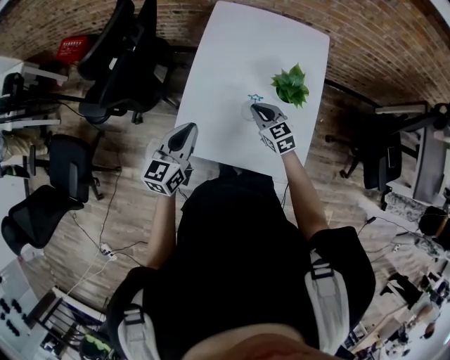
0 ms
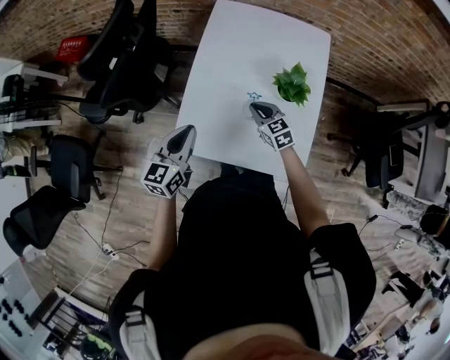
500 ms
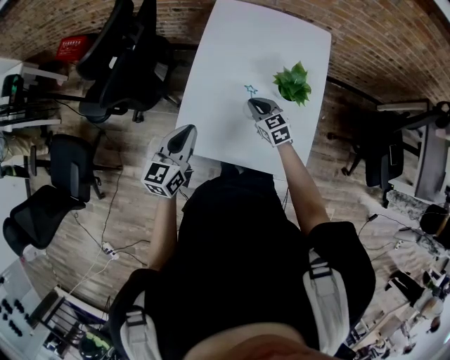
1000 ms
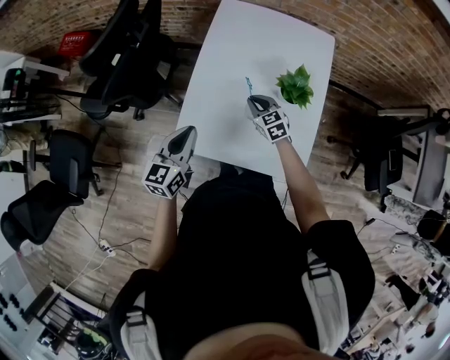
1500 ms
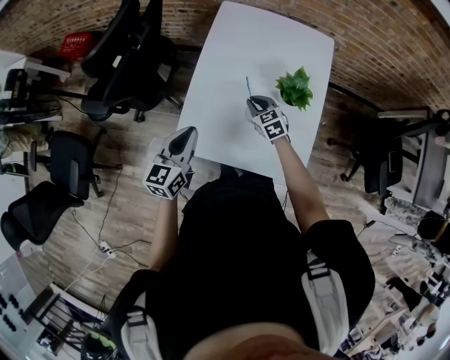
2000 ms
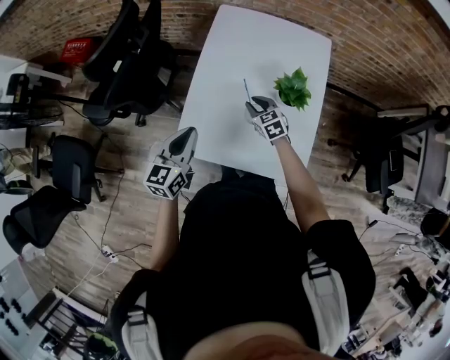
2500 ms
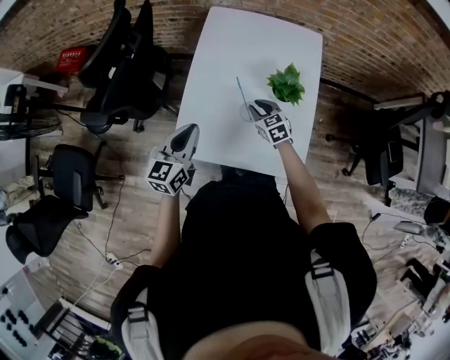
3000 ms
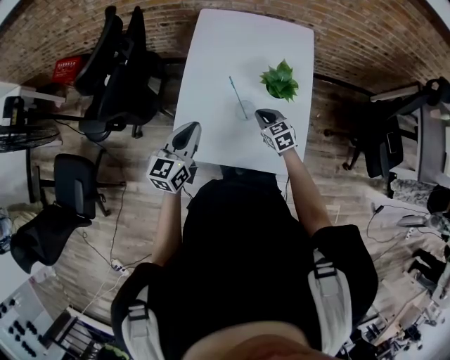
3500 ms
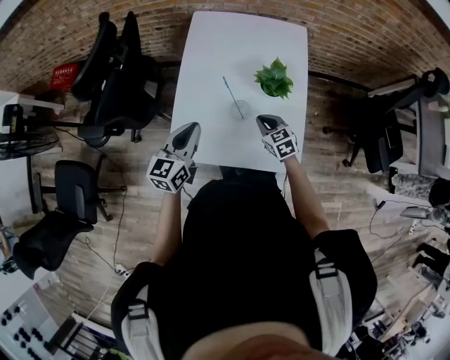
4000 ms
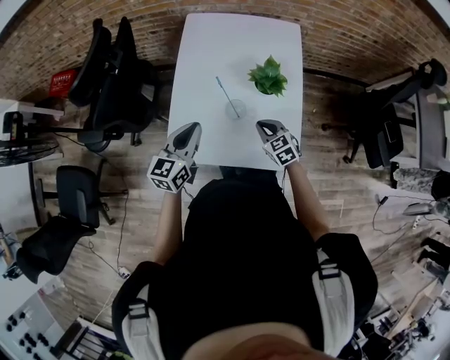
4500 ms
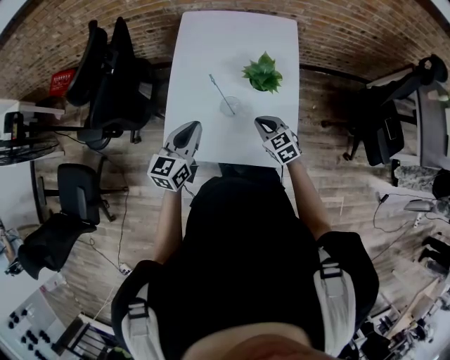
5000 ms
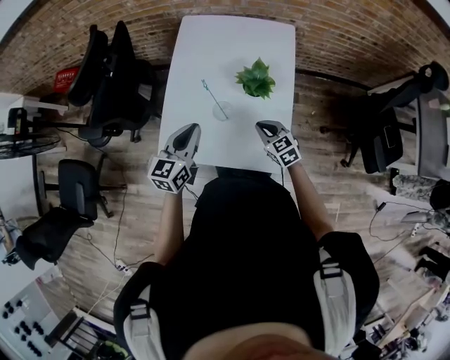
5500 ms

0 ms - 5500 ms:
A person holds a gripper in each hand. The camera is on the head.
0 ms - 2000 ms: The right gripper changes place by roughly 5 cm.
2000 ms - 3500 ms: The right gripper is displaced to the right and backward by about 10 cm.
3500 ms - 5500 ms: The left gripper goes about 10 cm to the right; the right gripper shifts approximately 10 cm to the right and backward.

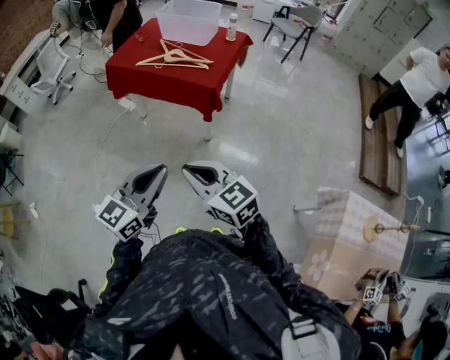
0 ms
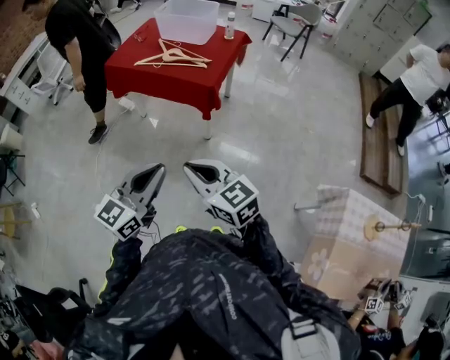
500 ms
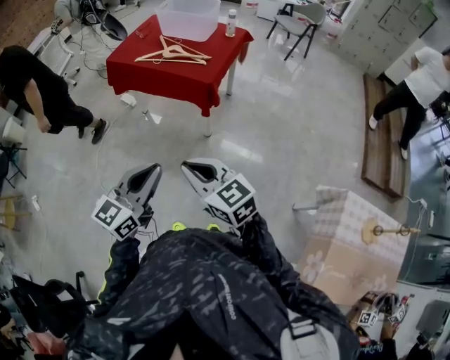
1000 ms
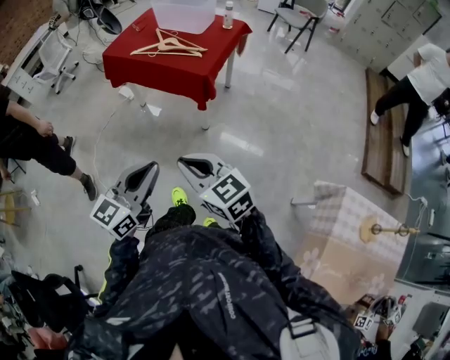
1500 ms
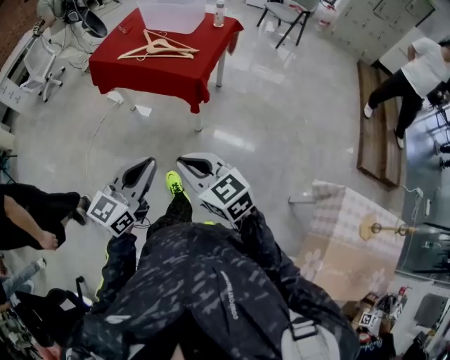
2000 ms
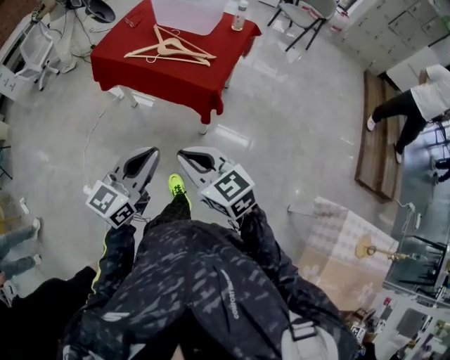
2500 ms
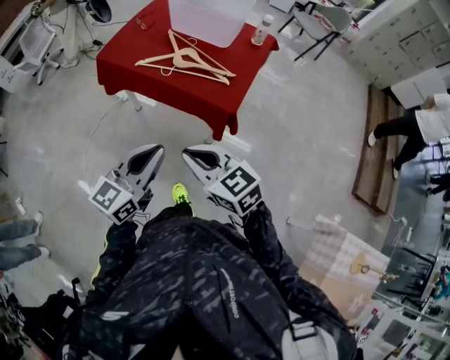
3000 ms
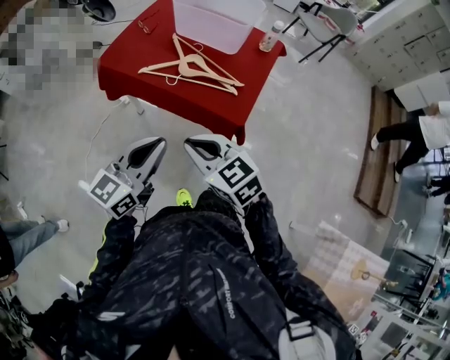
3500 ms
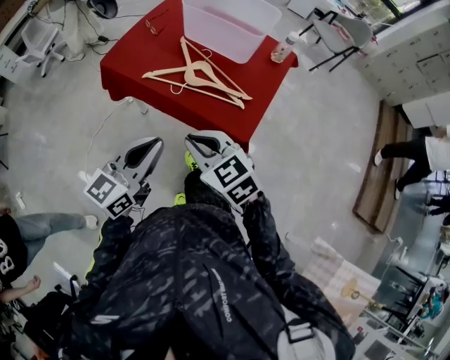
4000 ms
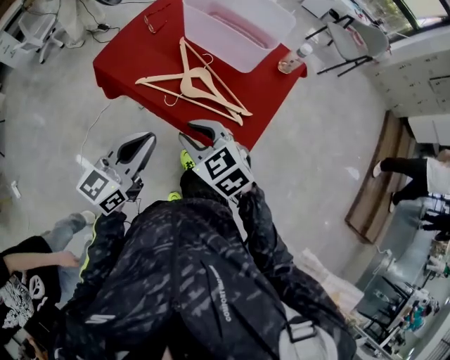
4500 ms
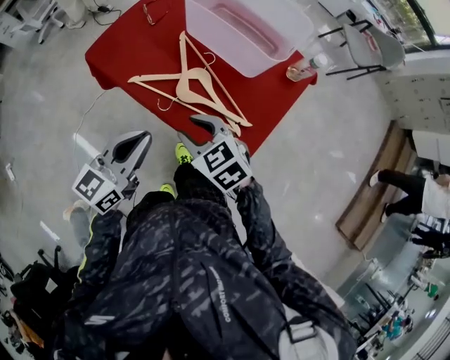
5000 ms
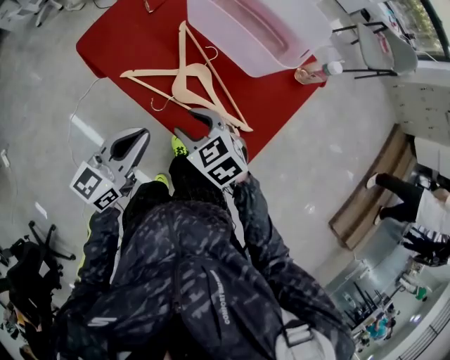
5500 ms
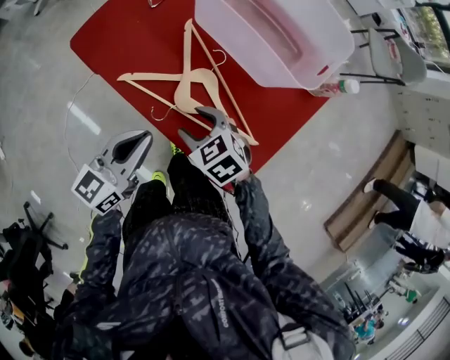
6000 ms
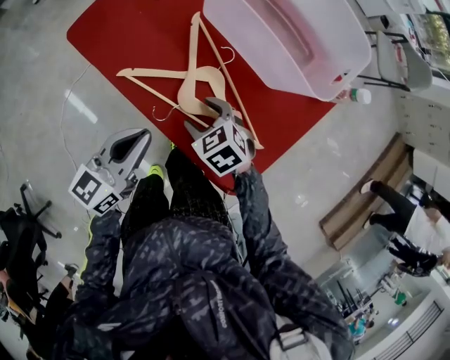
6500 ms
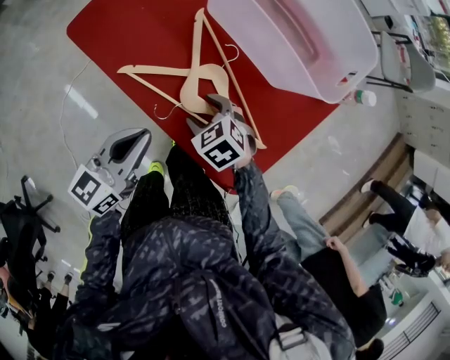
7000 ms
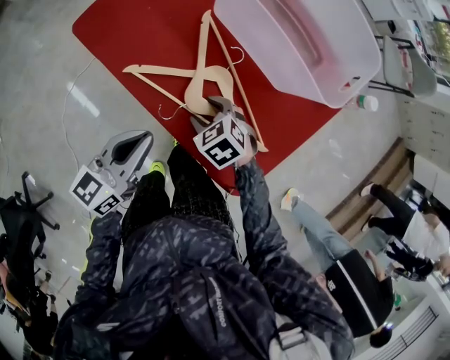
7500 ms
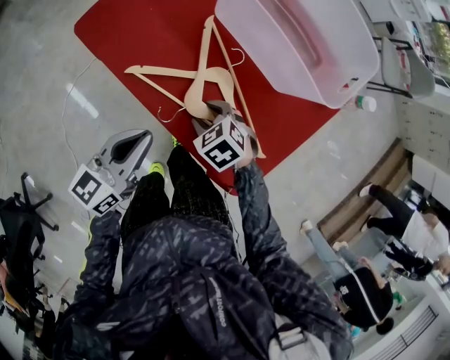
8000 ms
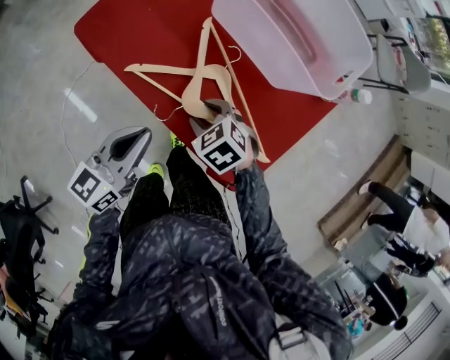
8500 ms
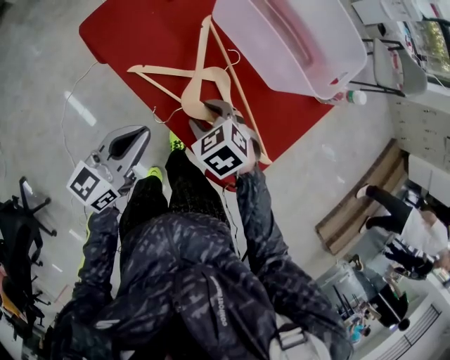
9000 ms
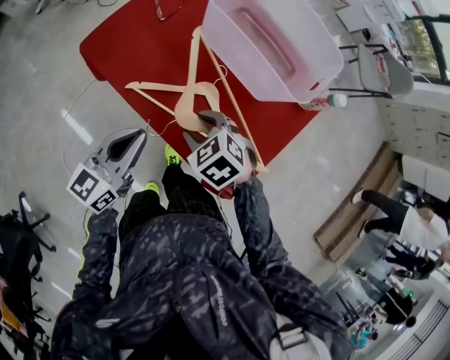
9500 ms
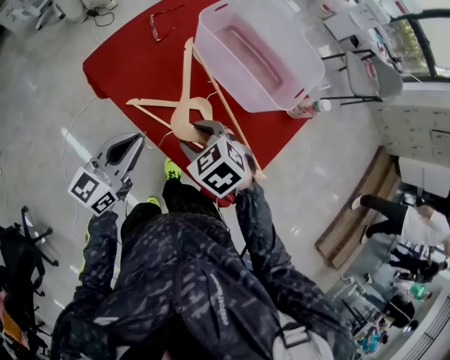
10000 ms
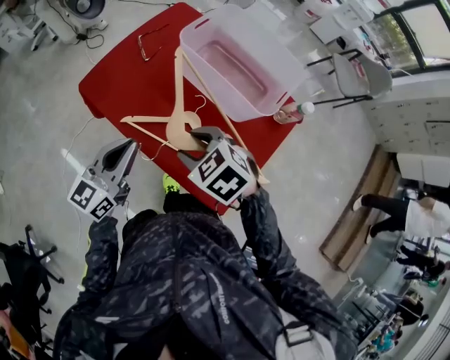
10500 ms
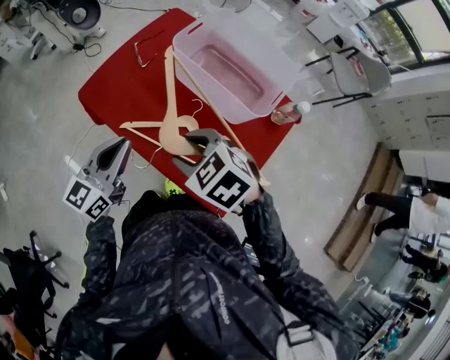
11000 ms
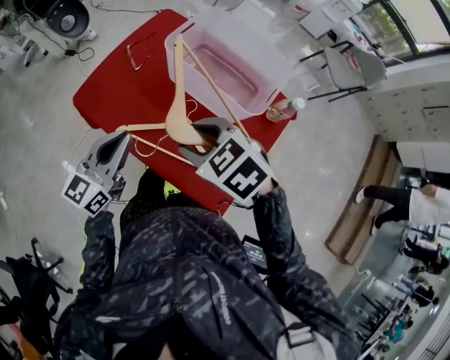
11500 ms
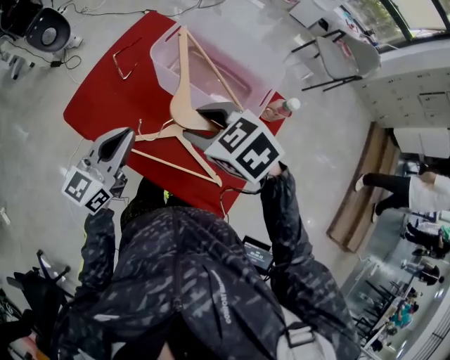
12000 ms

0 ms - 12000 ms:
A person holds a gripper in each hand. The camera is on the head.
0 ms - 2000 ms: The left gripper changes place by about 5 cm, while the right gripper changes place by approximately 5 cm.
2000 ms - 4000 ms: The left gripper swings forward and backward, about 15 cm each way, with 2 reversals. Meanwhile the right gripper moves forward and backward over roughly 15 cm, changing direction 2 times, and rotates approximately 20 degrees.
4000 ms - 6000 ms: The right gripper is displaced downward by some 10 cm, swivels some 20 degrees, and opens its fingers. Meanwhile the left gripper is displaced downward by approximately 5 cm, and reaches about 10 cm forward, then returns.
6000 ms - 8000 ms: The right gripper moves downward, some 5 cm.
8000 ms - 10000 ms: The right gripper goes some 20 cm upward. Meanwhile the left gripper travels upward by some 10 cm.
10000 ms - 12000 ms: The left gripper is displaced forward, upward and to the right by about 15 cm; the right gripper travels upward, forward and to the right by roughly 20 cm.

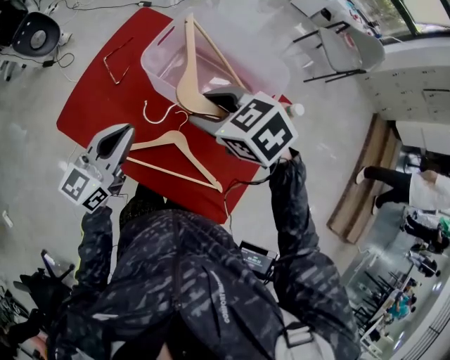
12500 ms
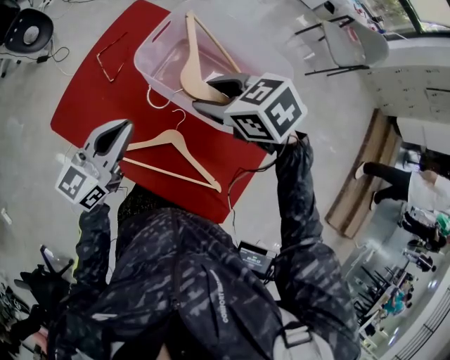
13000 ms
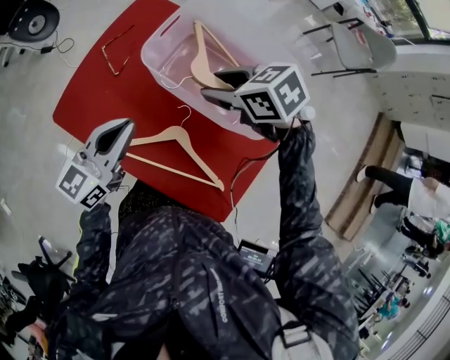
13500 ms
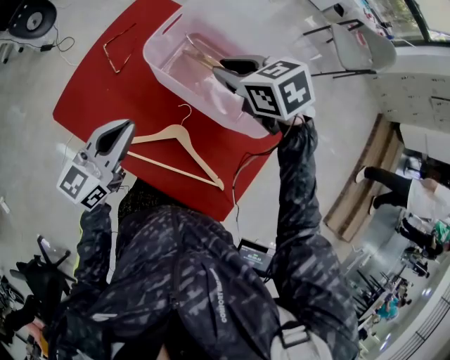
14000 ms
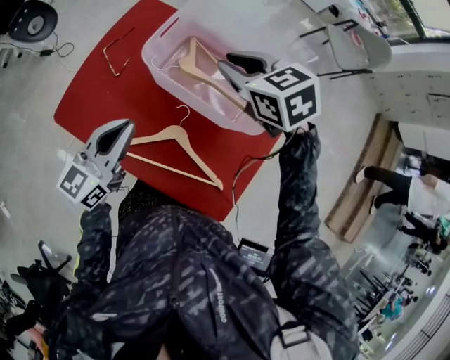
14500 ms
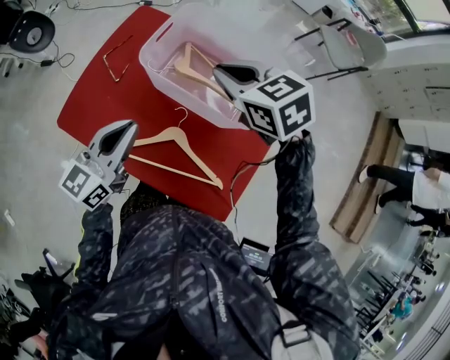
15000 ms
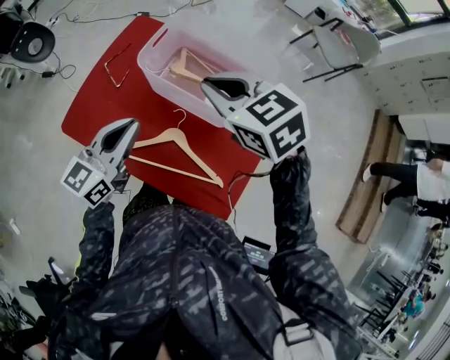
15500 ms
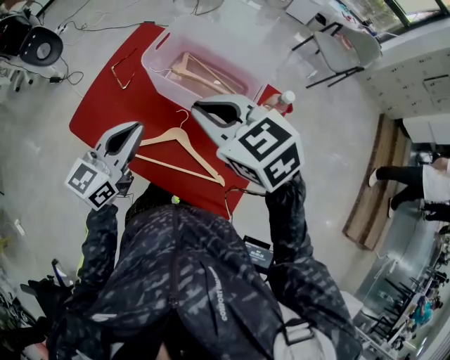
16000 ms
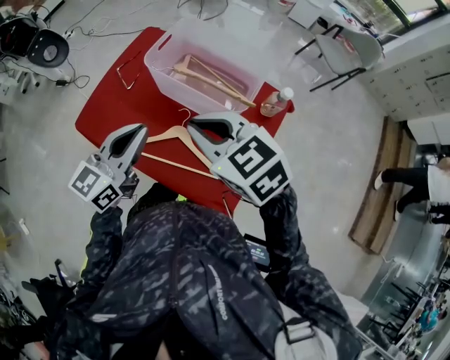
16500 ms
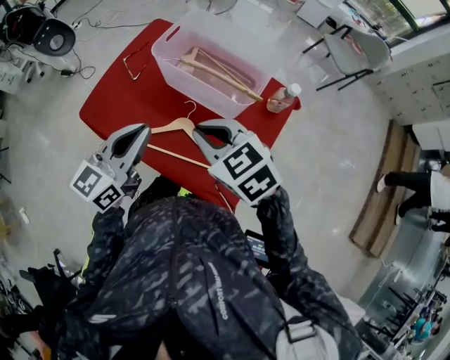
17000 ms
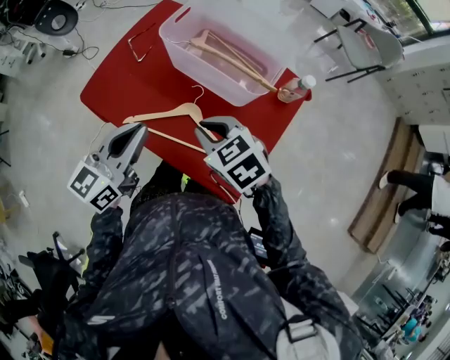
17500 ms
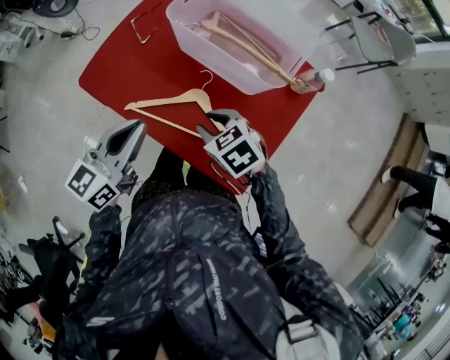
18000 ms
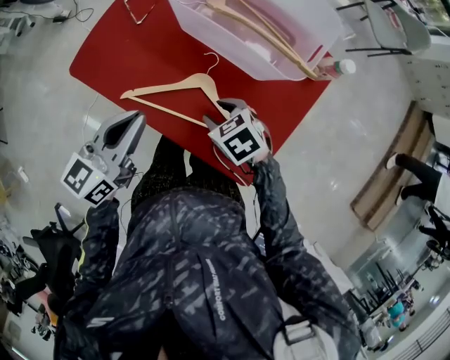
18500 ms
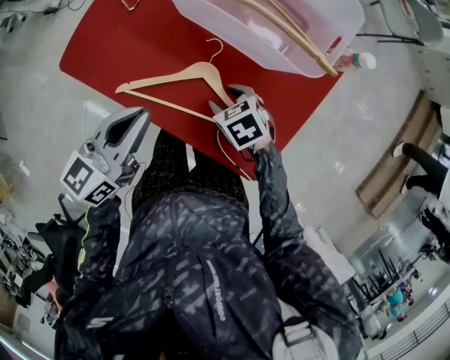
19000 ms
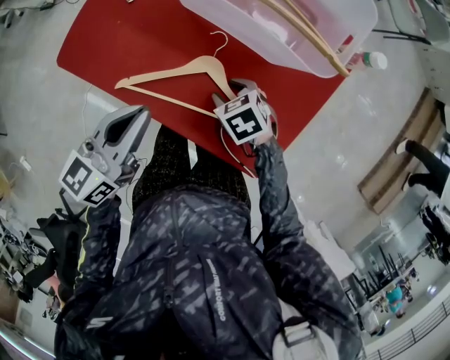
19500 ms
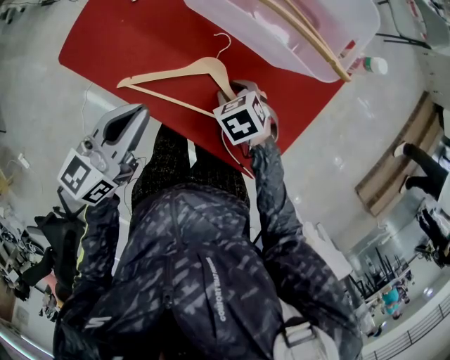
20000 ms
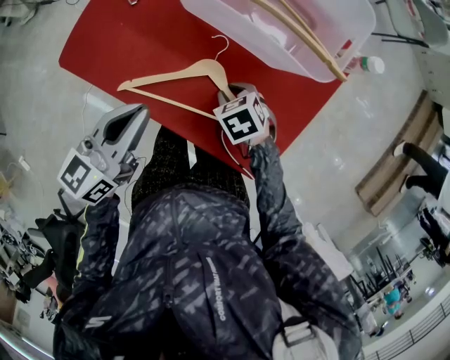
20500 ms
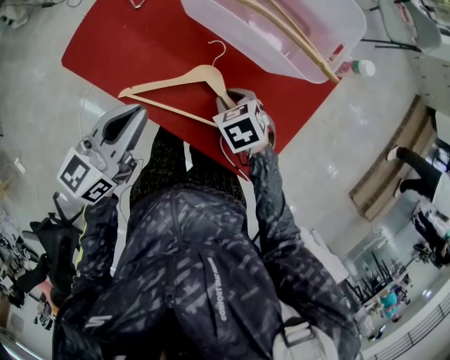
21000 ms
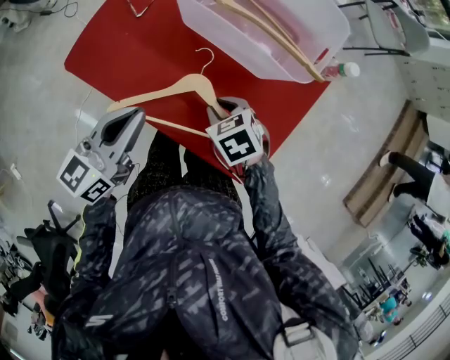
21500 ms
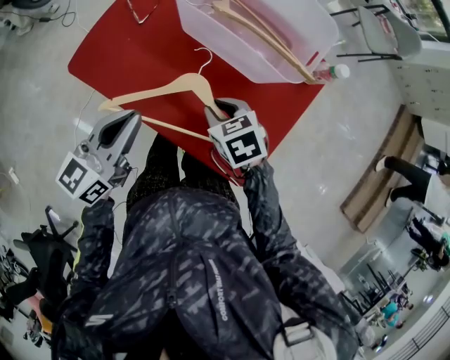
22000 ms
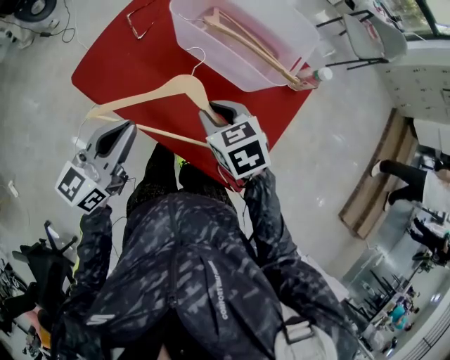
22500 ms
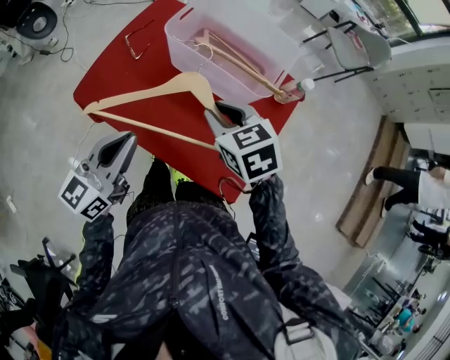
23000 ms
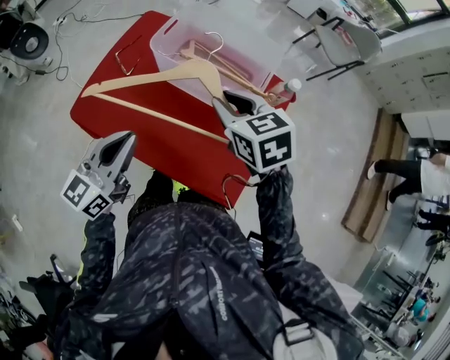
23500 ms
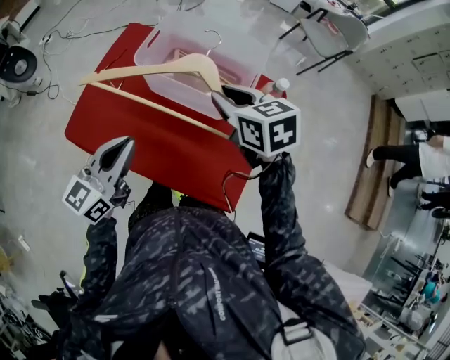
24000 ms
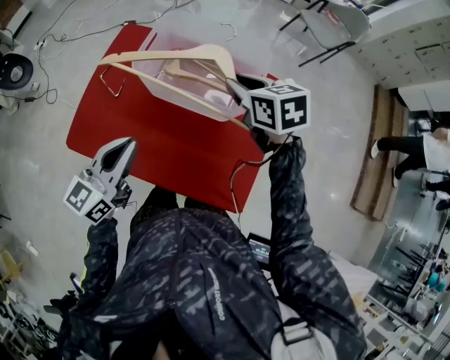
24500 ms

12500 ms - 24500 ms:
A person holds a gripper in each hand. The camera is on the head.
12500 ms - 14500 ms: The right gripper is displaced forward and to the right by roughly 10 cm, and closes its fingers.
14500 ms - 16500 ms: The right gripper is displaced backward by approximately 25 cm. Meanwhile the left gripper travels backward and upward by roughly 15 cm.
16500 ms - 18500 ms: The right gripper shifts about 30 cm downward, rotates approximately 30 degrees, and opens its fingers. The left gripper is displaced downward and to the left by roughly 15 cm.
18500 ms - 20500 ms: The right gripper shifts approximately 10 cm downward.
20500 ms - 22500 ms: The left gripper travels upward and backward by about 10 cm. Meanwhile the right gripper moves upward, some 20 cm.
22500 ms - 24500 ms: The left gripper goes some 10 cm forward. Meanwhile the right gripper goes approximately 25 cm forward, upward and to the right, and swivels approximately 20 degrees.
